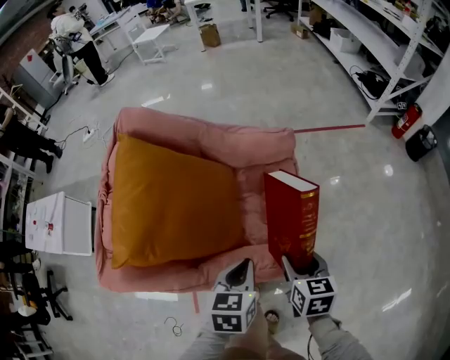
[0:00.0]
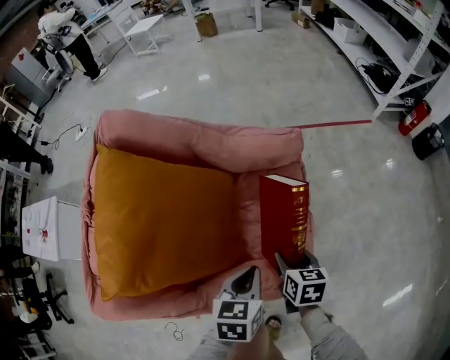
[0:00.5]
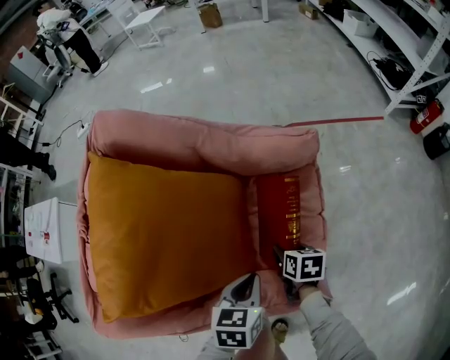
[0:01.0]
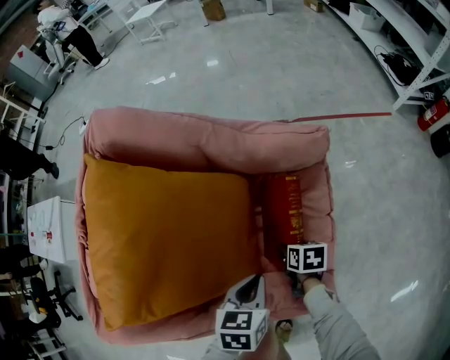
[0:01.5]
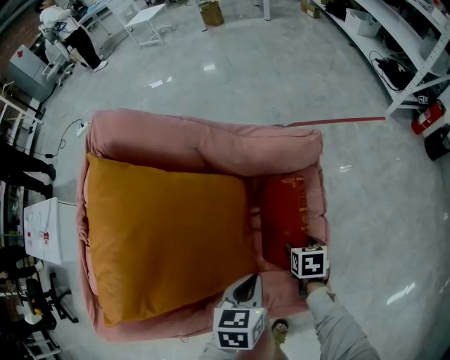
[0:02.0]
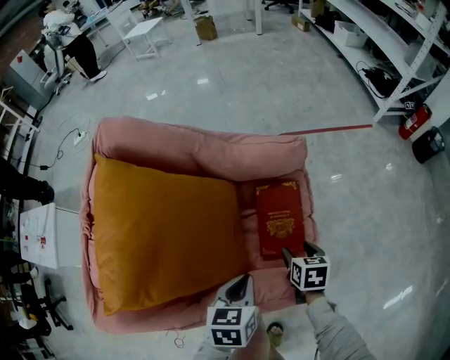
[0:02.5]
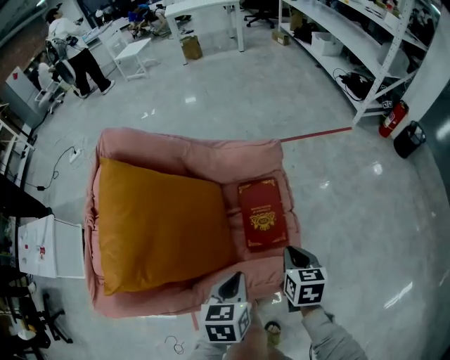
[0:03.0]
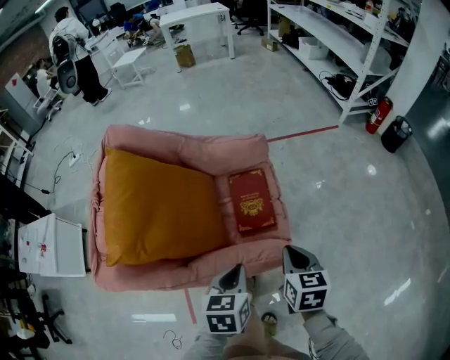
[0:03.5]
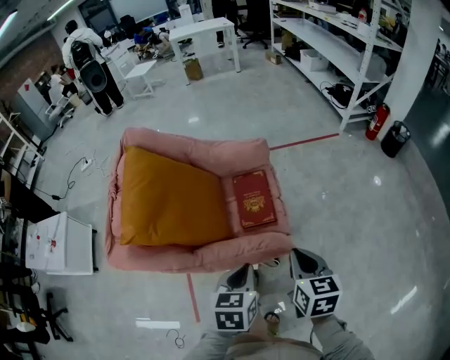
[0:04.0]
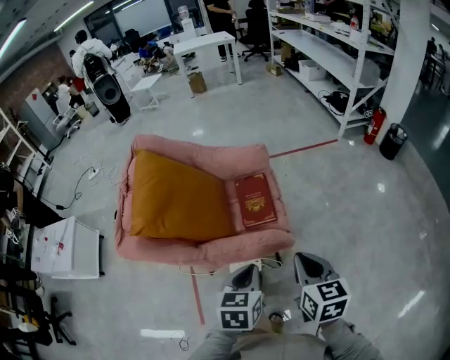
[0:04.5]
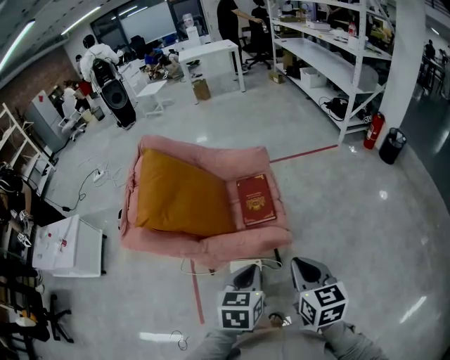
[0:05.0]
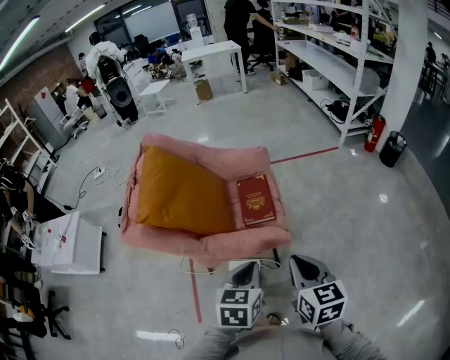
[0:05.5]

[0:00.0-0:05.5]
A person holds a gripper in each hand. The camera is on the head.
0.0 to 2.0 s: The right gripper goes about 25 cm downward and forward, and swivels about 30 degrees, while the left gripper travels downward and forward by some 15 cm.
2.0 to 3.5 s: The left gripper goes approximately 15 cm backward, upward and to the right. Meanwhile the right gripper travels upward and backward by some 30 cm, changes its angle by about 30 degrees, and closes its fingers.
3.5 to 5.5 s: The two grippers go some 20 cm backward and upward.

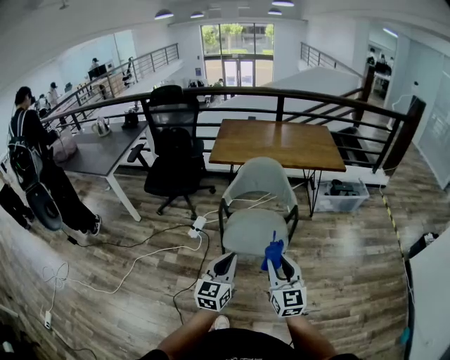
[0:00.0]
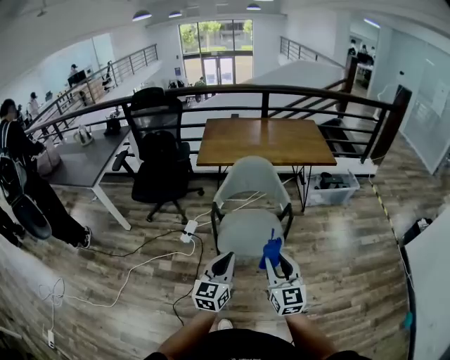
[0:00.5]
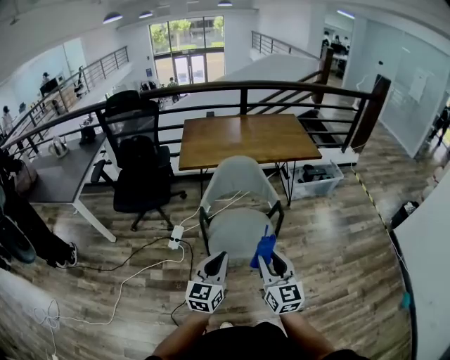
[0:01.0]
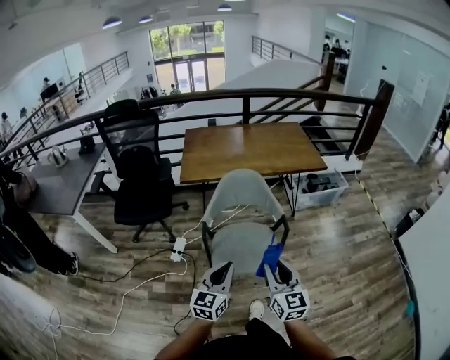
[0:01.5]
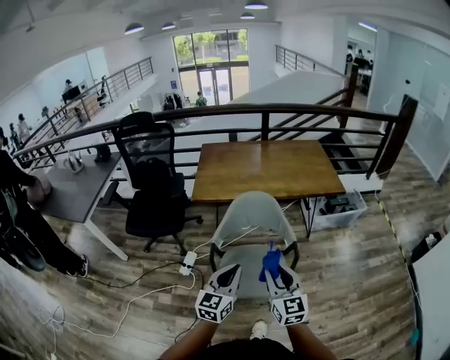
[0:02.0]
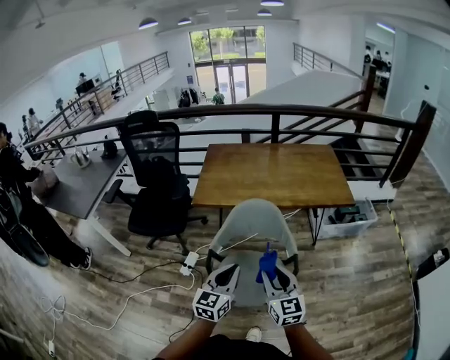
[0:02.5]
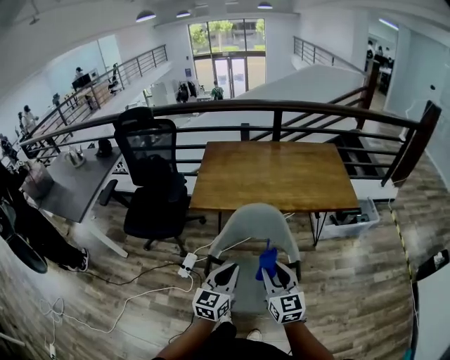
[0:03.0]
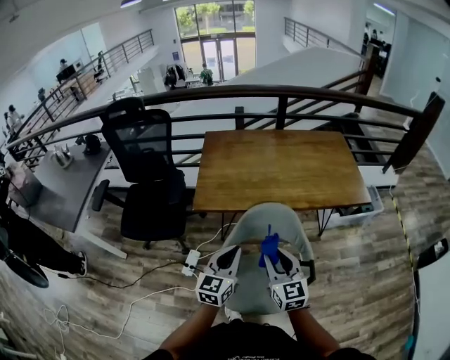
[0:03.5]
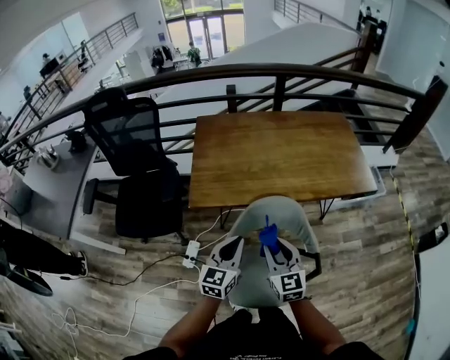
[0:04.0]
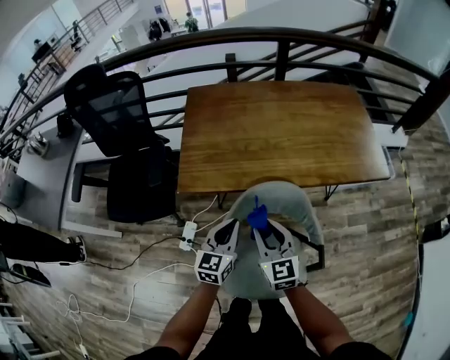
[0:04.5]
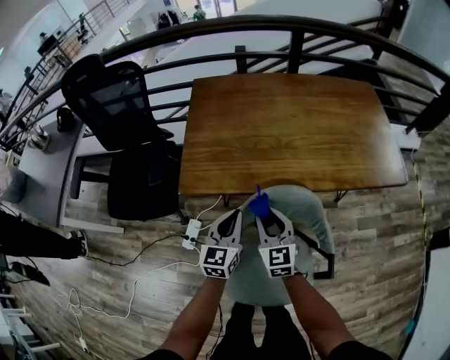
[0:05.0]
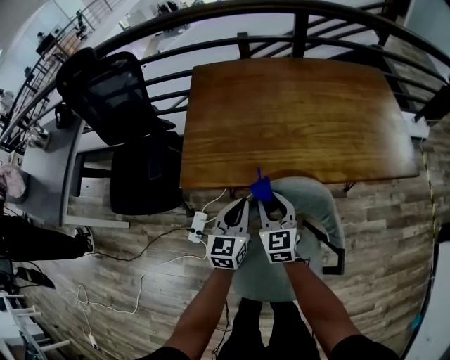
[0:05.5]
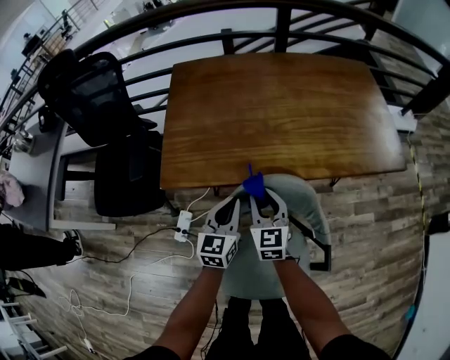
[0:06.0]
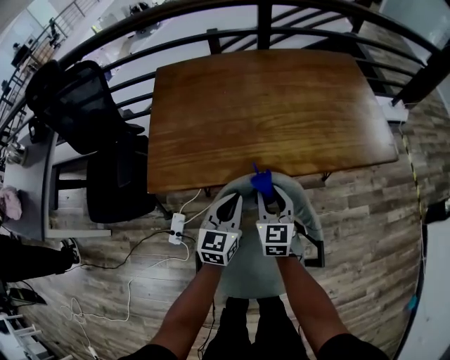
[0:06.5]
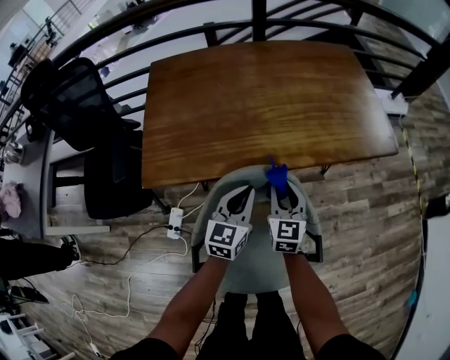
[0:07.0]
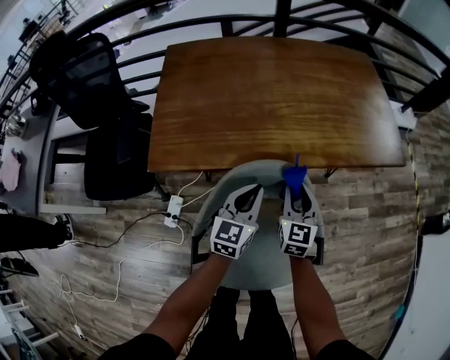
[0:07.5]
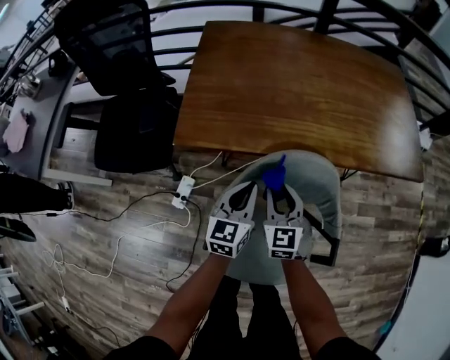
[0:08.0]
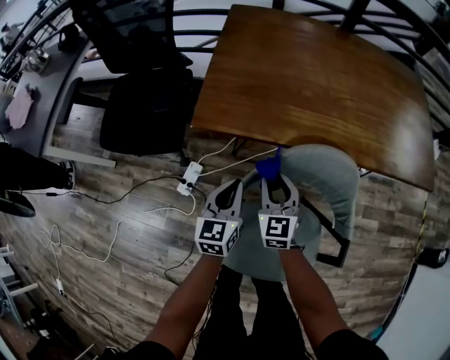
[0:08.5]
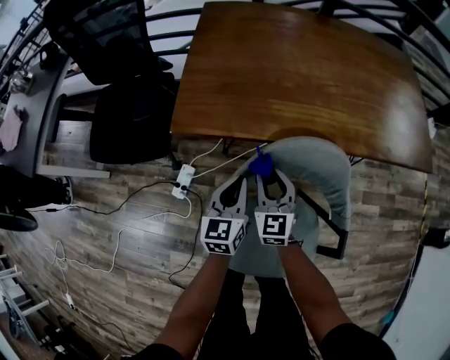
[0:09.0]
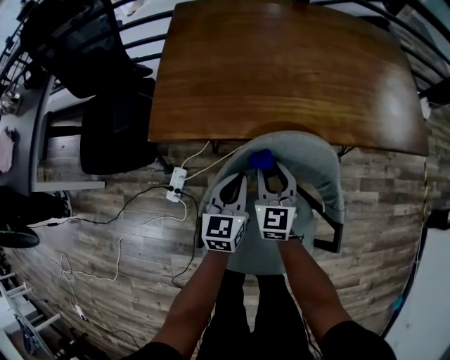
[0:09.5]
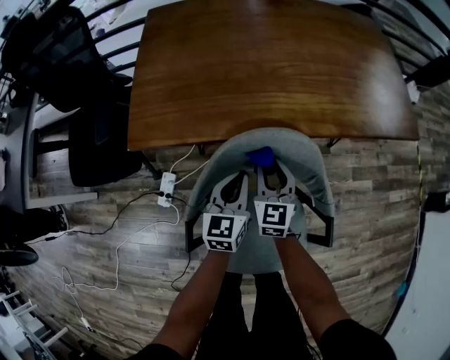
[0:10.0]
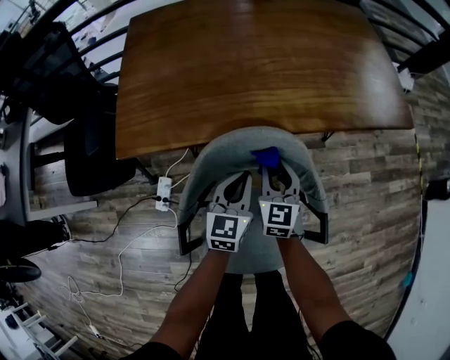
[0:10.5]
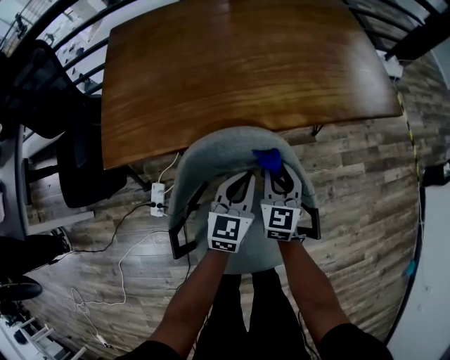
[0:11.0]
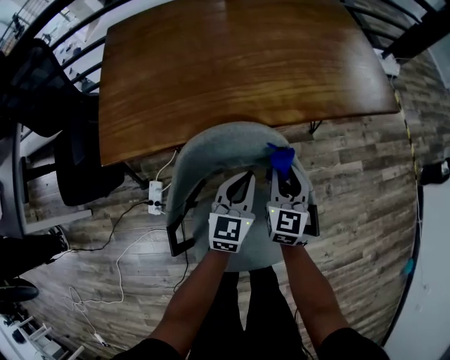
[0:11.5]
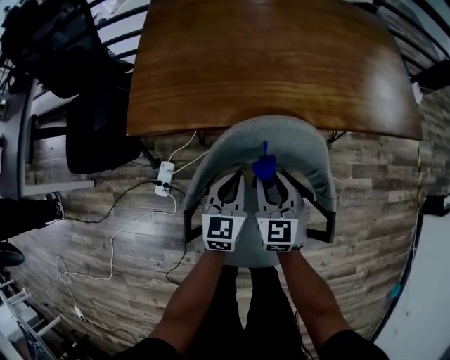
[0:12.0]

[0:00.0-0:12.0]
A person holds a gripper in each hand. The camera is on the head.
0.0 to 2.0 s: Both grippers travel together forward, some 20 cm.
2.0 to 4.0 s: The two grippers go approximately 30 cm forward.
4.0 to 6.0 s: The left gripper goes some 20 cm downward and forward; the right gripper goes roughly 25 cm forward and downward.
6.0 to 8.0 s: The right gripper travels to the right and back again, approximately 15 cm each way; the left gripper reaches roughly 10 cm to the right, then returns.
8.0 to 10.0 s: The two grippers go some 10 cm to the right and downward.
10.0 to 12.0 s: The left gripper goes to the right and returns, roughly 10 cm each way, while the right gripper is displaced backward by roughly 5 cm, and travels to the right and back again, roughly 15 cm each way.

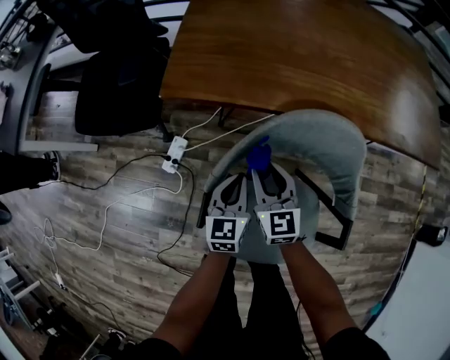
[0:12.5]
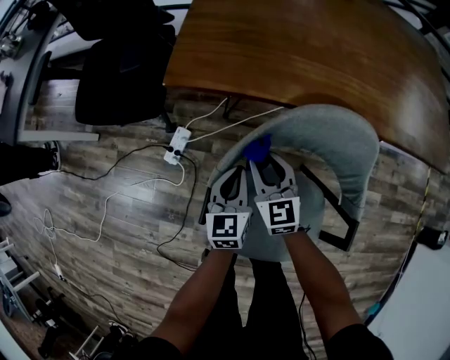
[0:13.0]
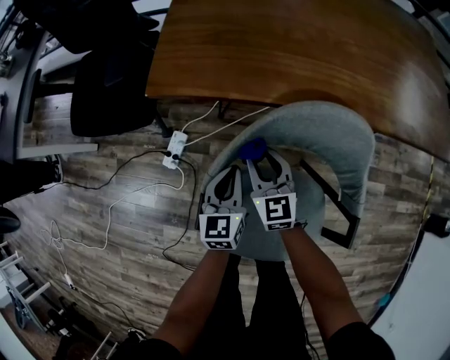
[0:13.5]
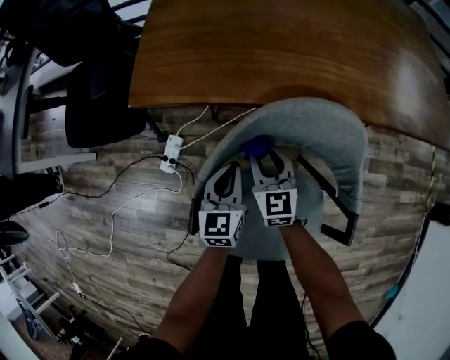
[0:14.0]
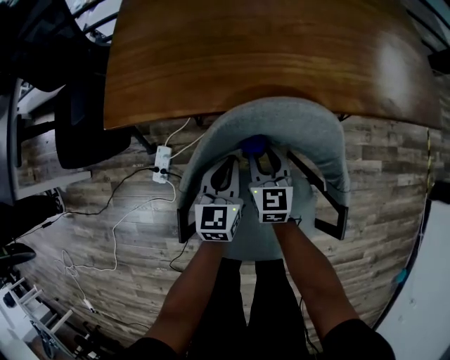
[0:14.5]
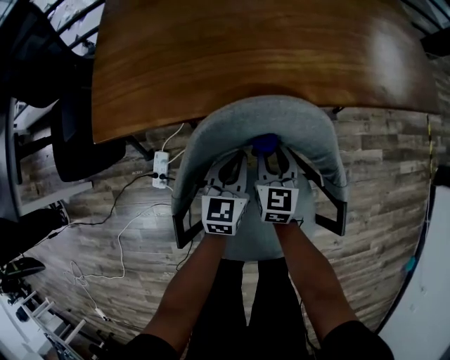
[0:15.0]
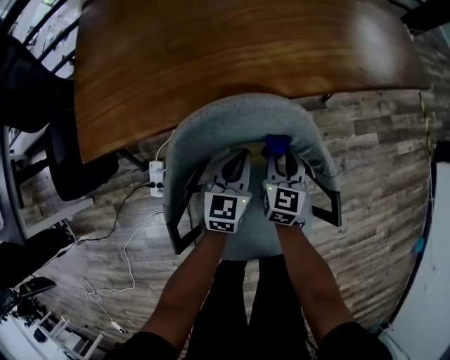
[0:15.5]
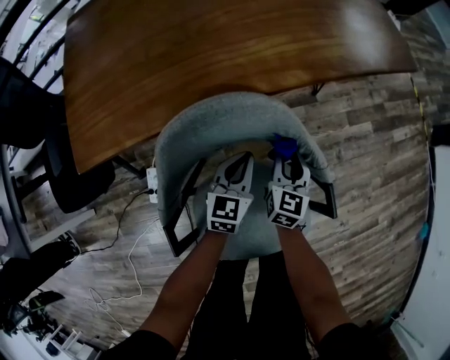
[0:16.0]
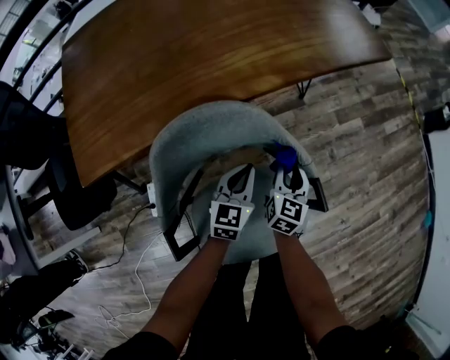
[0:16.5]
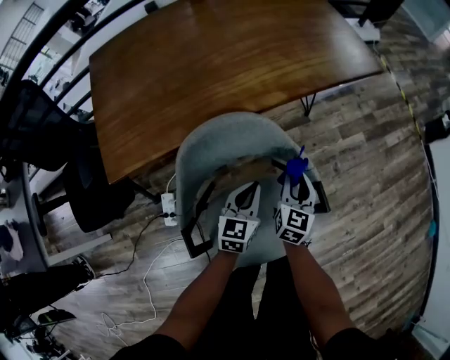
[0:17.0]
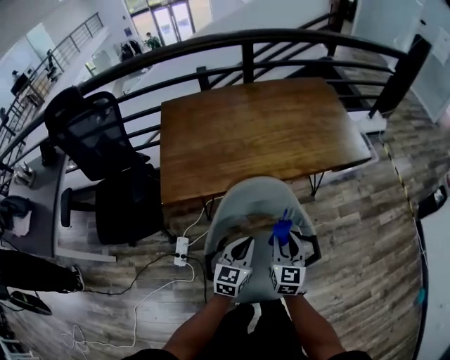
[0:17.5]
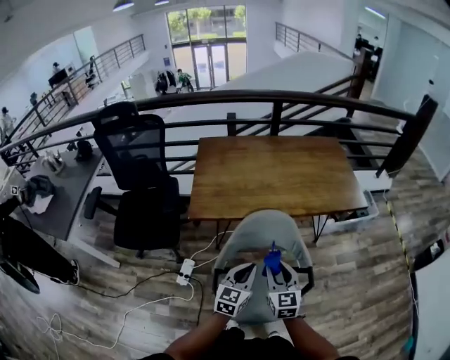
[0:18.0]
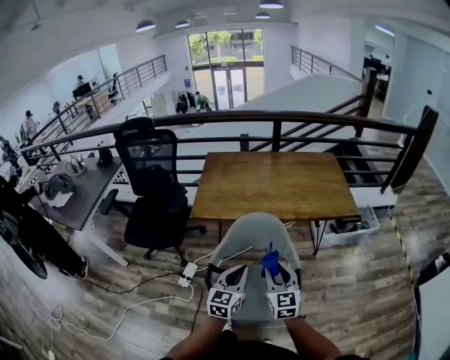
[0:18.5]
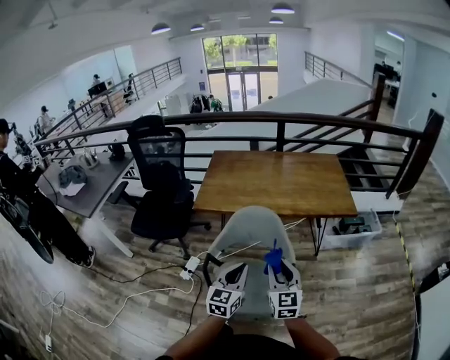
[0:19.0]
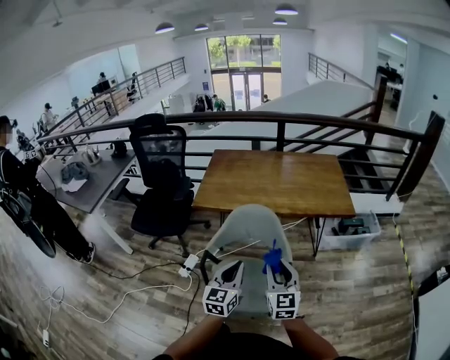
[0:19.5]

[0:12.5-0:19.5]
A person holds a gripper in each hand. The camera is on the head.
12.5 to 14.5 s: The right gripper goes about 10 cm to the right and downward. The left gripper shifts approximately 5 cm to the right.
14.5 to 16.0 s: The right gripper shifts by about 20 cm, and changes its angle by roughly 40 degrees. Meanwhile the left gripper moves approximately 15 cm, and swivels some 30 degrees.
16.0 to 17.5 s: Both grippers move upward and backward, some 25 cm.
17.5 to 19.5 s: Both grippers move backward, upward and to the right, roughly 25 cm. The right gripper rotates roughly 30 degrees; the left gripper turns by some 30 degrees.

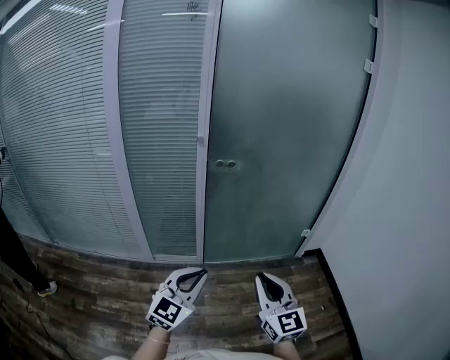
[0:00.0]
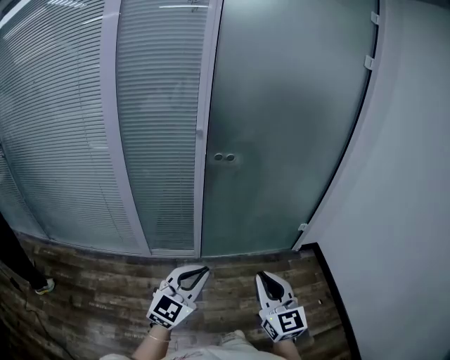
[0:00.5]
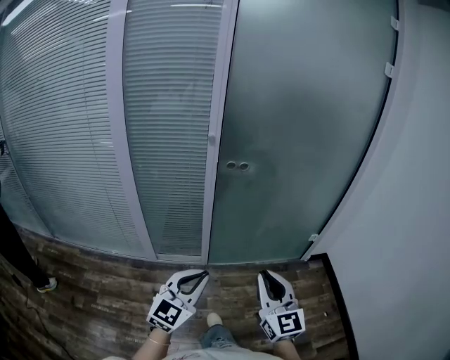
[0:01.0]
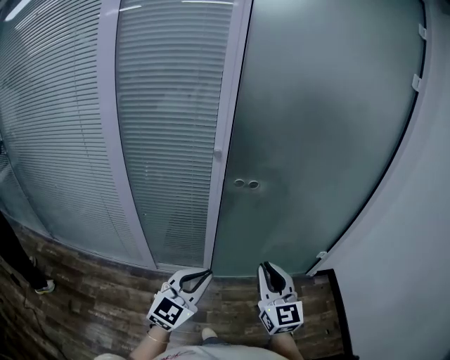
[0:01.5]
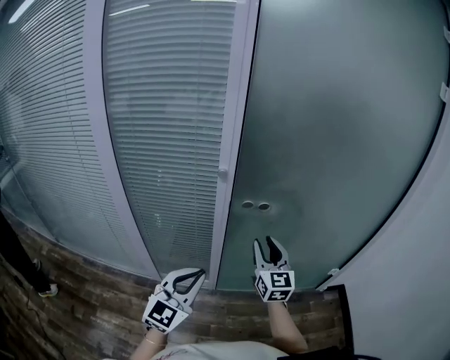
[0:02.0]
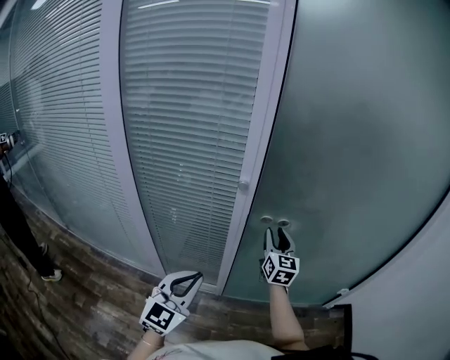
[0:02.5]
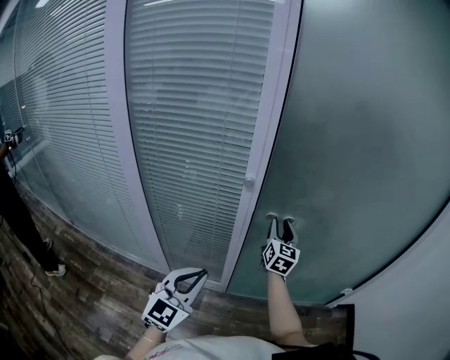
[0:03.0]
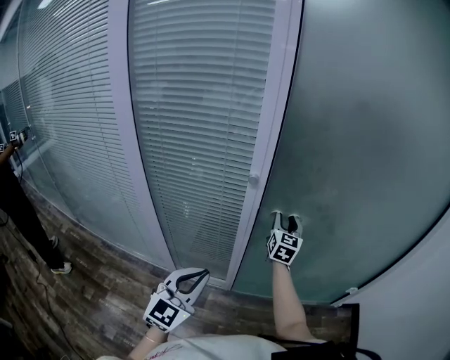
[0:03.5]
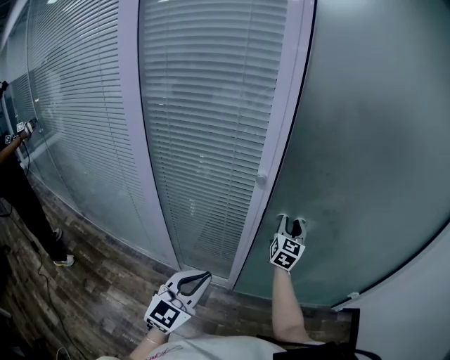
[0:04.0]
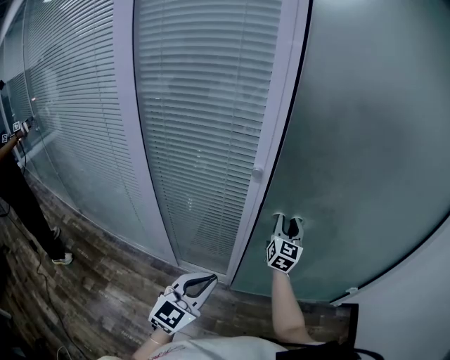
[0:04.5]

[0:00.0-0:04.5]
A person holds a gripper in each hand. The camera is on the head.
0.0 to 2.0 s: The left gripper is displaced forward by about 25 cm. Meanwhile the right gripper moves forward, some 40 cm, and opens its fingers.
2.0 to 4.5 s: The right gripper is displaced forward by approximately 15 cm.
